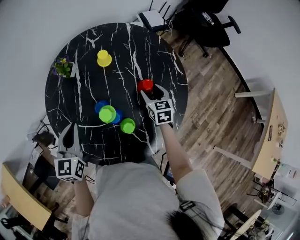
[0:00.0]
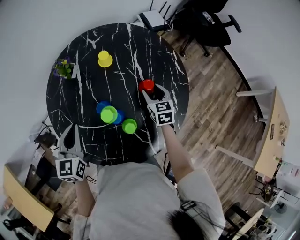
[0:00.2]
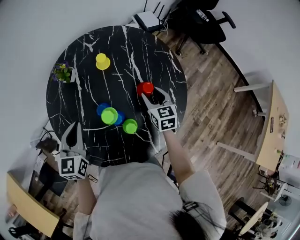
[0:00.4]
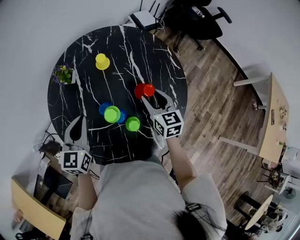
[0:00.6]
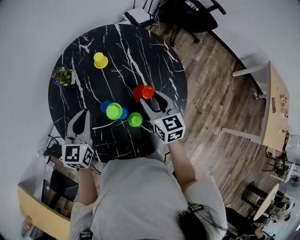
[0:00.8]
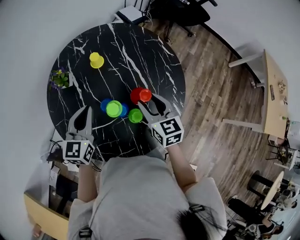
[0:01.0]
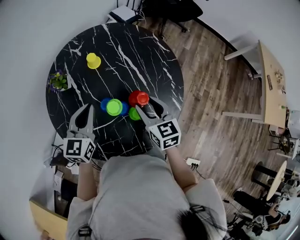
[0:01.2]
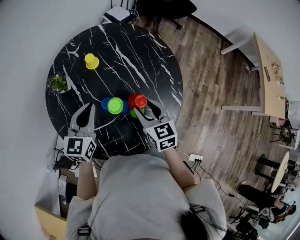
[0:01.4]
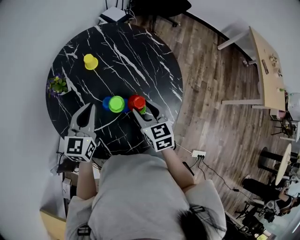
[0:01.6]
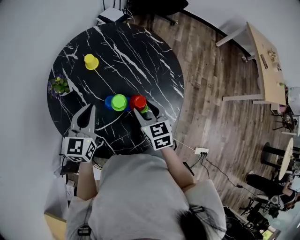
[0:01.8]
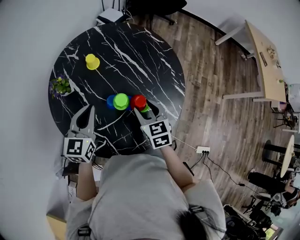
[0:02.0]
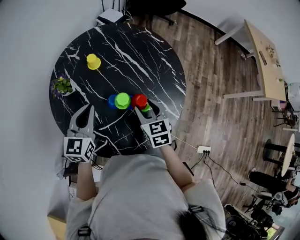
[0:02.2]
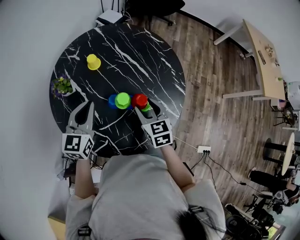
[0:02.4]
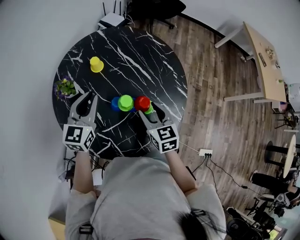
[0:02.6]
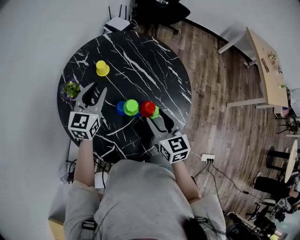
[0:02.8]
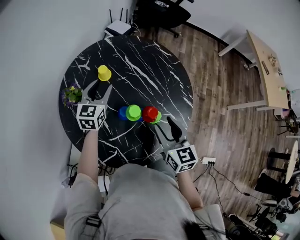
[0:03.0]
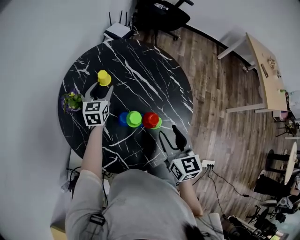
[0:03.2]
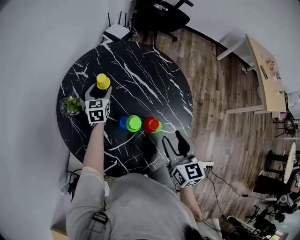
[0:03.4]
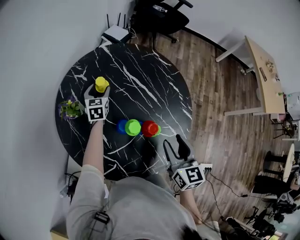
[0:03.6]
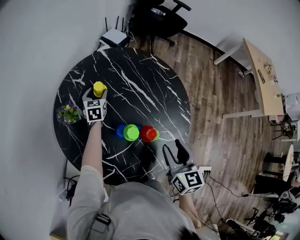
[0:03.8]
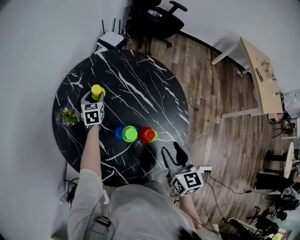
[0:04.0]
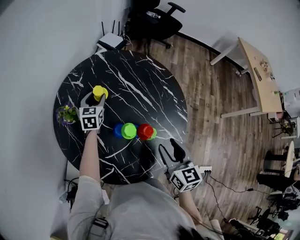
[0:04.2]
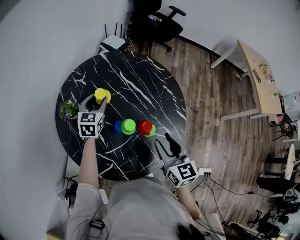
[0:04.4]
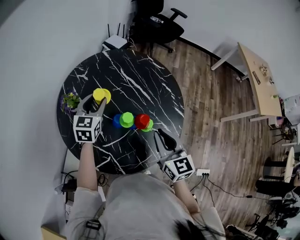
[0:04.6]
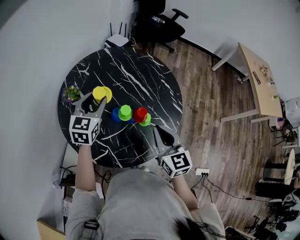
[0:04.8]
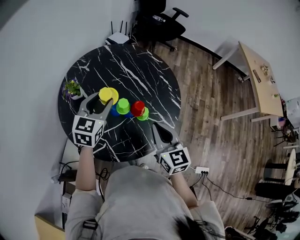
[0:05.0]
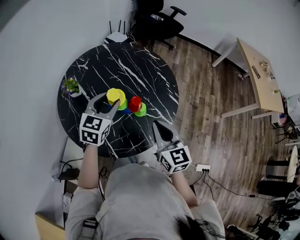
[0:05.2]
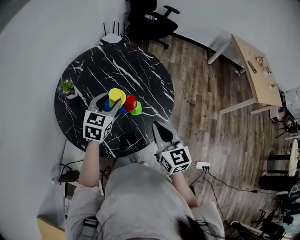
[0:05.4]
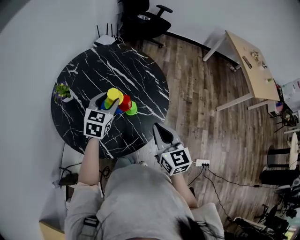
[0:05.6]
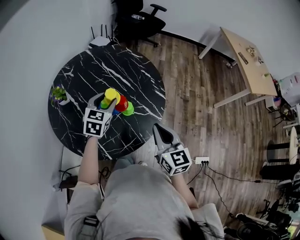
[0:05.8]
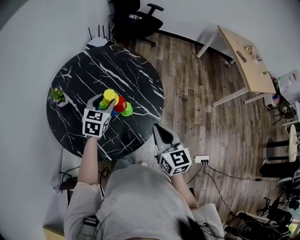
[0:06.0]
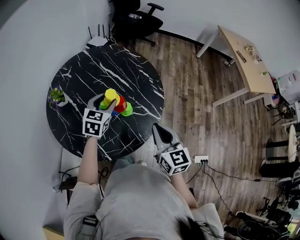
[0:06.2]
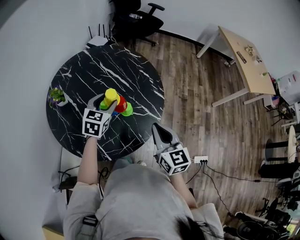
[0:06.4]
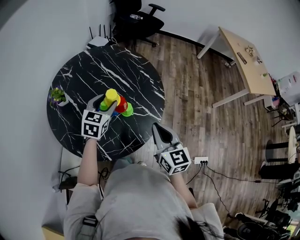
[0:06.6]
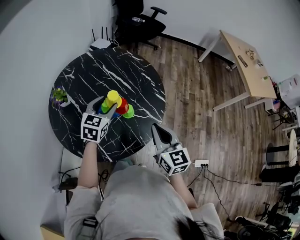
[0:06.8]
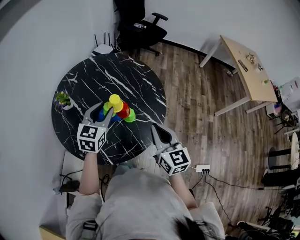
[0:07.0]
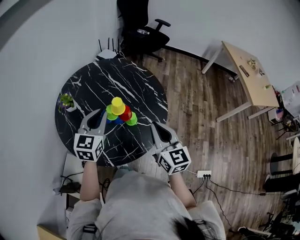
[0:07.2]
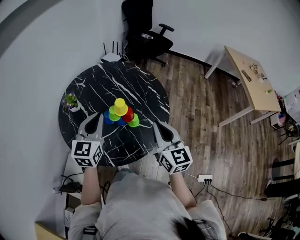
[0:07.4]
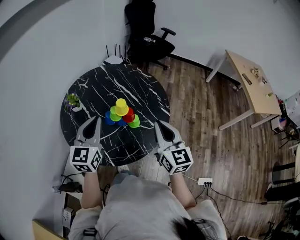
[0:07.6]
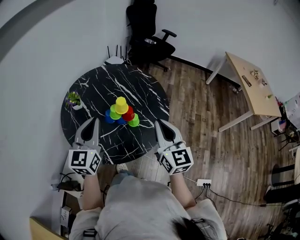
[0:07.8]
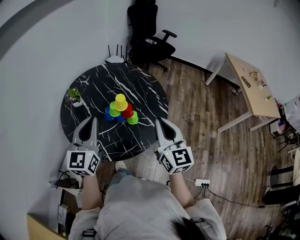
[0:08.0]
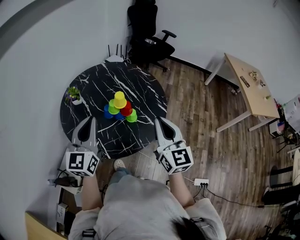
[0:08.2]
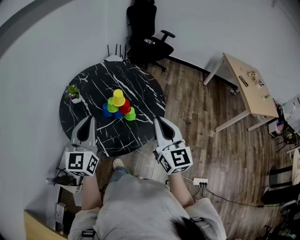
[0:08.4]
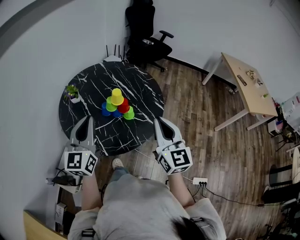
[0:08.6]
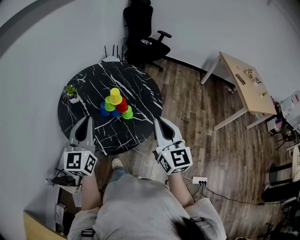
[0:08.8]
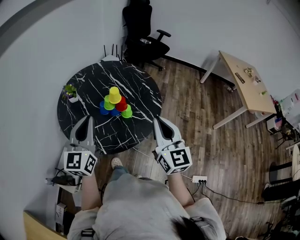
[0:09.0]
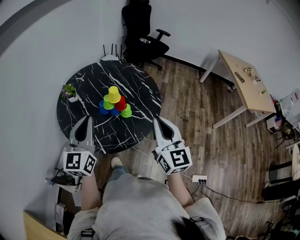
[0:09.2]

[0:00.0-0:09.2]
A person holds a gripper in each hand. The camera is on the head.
0:00.0 to 0:01.6: The right gripper ends up roughly 20 cm from where it was, and swivels approximately 20 degrees. Meanwhile the left gripper shifts by about 10 cm, and changes its angle by about 40 degrees.
0:01.6 to 0:03.0: The right gripper heads upward, covering roughly 5 cm, while the left gripper moves forward, about 15 cm, and opens.
0:03.0 to 0:04.6: The left gripper goes downward and returns, some 15 cm each way, while the right gripper closes up.
0:04.6 to 0:06.2: Both grippers move to the right and backward, some 15 cm.
0:06.2 to 0:07.6: The left gripper shifts about 20 cm upward, backward and to the left, rotates approximately 30 degrees, and closes, while the right gripper is displaced upward by approximately 10 cm.
0:07.6 to 0:09.2: Both grippers travel together backward, approximately 10 cm.

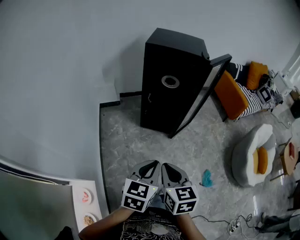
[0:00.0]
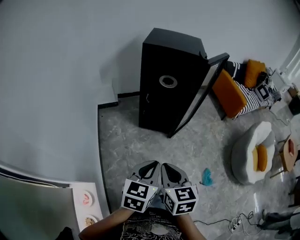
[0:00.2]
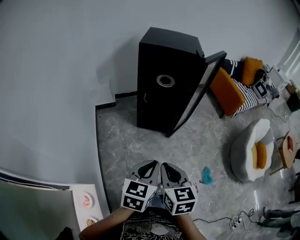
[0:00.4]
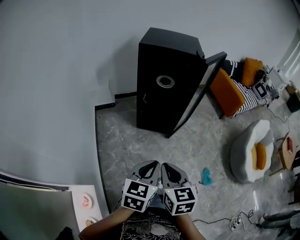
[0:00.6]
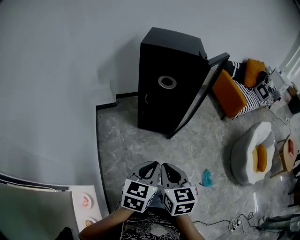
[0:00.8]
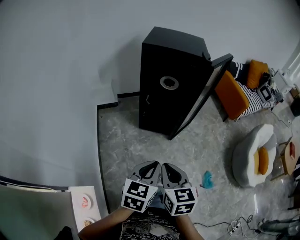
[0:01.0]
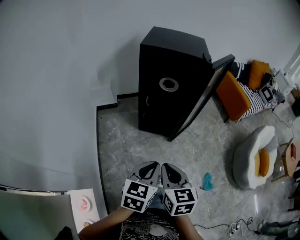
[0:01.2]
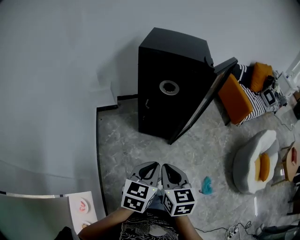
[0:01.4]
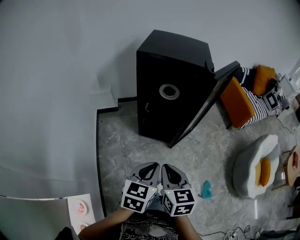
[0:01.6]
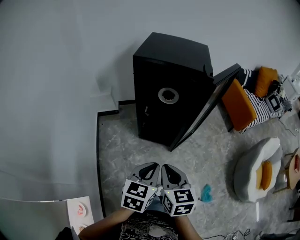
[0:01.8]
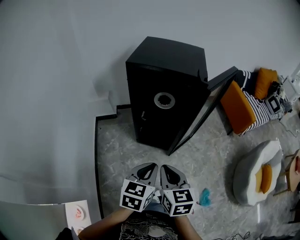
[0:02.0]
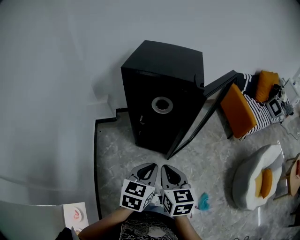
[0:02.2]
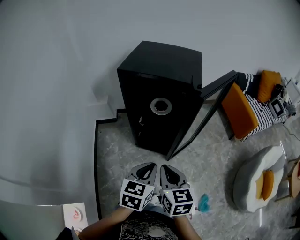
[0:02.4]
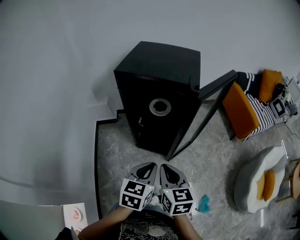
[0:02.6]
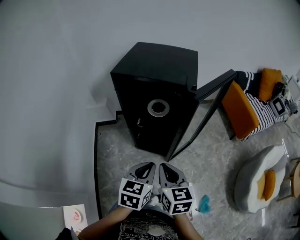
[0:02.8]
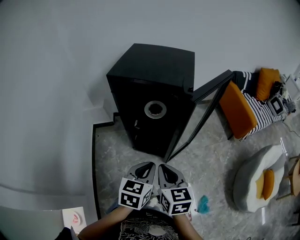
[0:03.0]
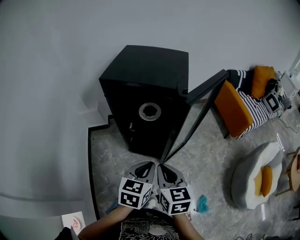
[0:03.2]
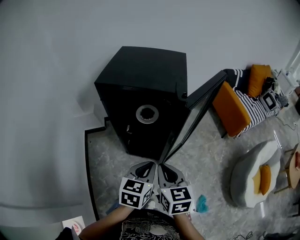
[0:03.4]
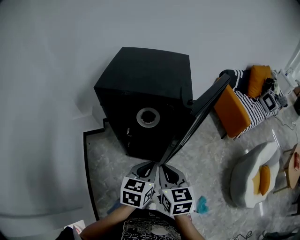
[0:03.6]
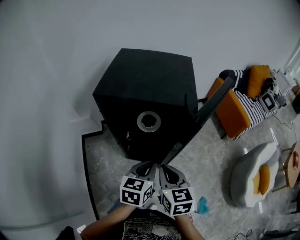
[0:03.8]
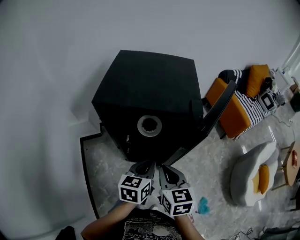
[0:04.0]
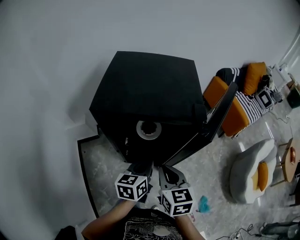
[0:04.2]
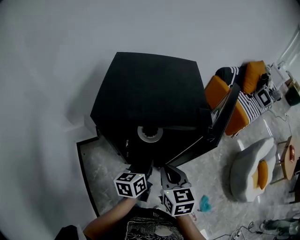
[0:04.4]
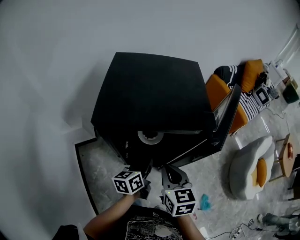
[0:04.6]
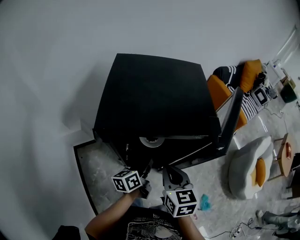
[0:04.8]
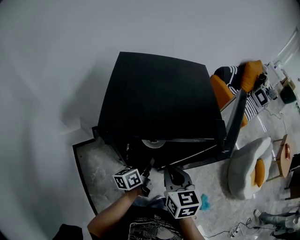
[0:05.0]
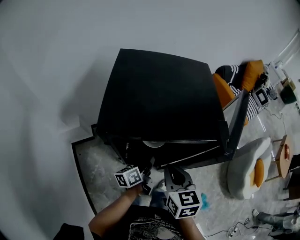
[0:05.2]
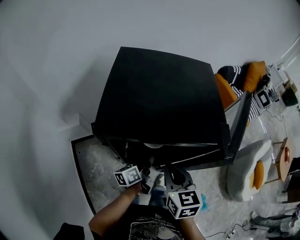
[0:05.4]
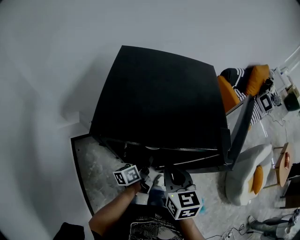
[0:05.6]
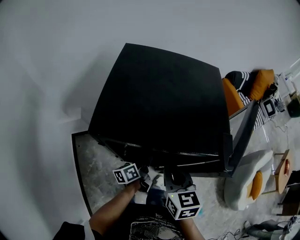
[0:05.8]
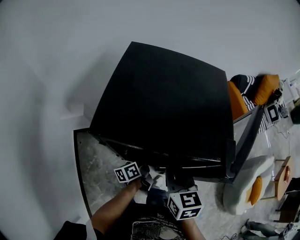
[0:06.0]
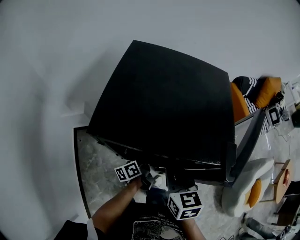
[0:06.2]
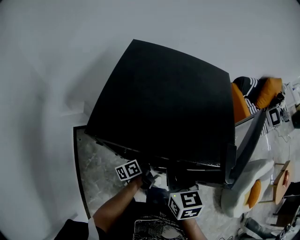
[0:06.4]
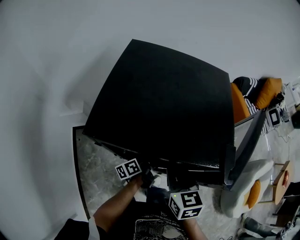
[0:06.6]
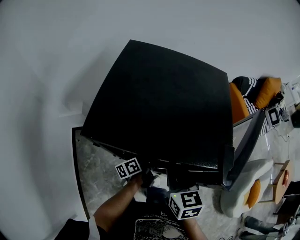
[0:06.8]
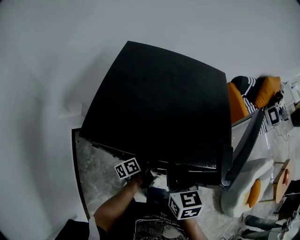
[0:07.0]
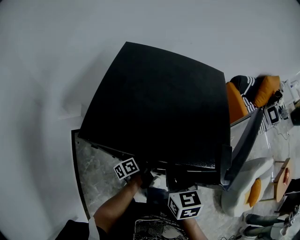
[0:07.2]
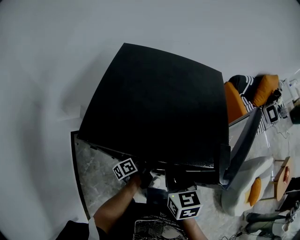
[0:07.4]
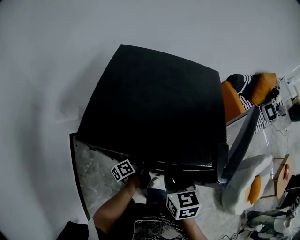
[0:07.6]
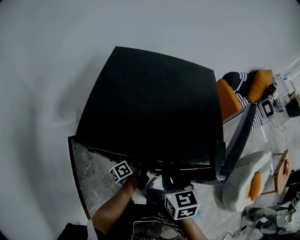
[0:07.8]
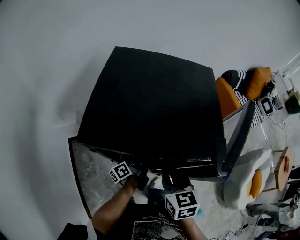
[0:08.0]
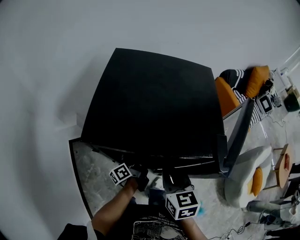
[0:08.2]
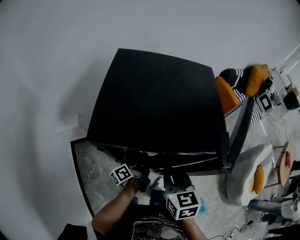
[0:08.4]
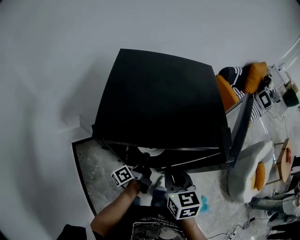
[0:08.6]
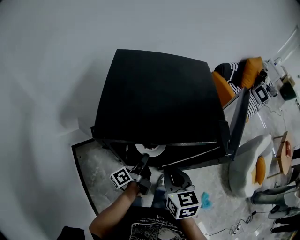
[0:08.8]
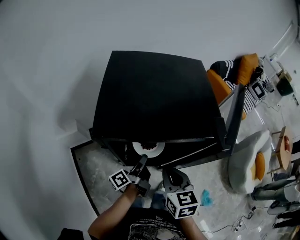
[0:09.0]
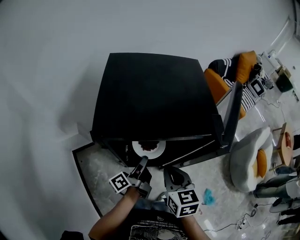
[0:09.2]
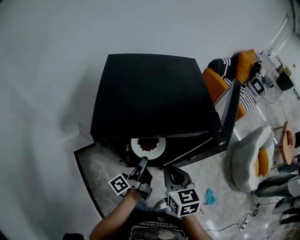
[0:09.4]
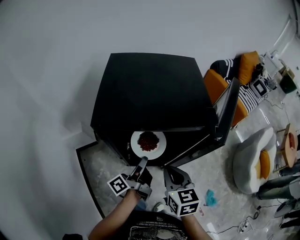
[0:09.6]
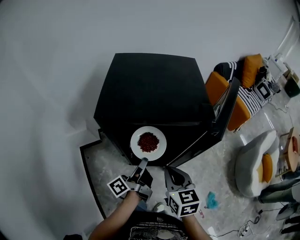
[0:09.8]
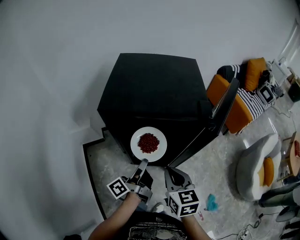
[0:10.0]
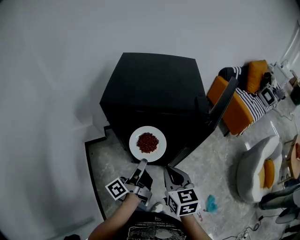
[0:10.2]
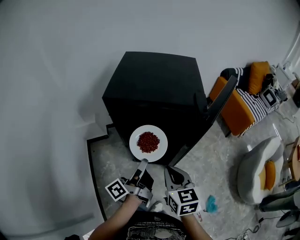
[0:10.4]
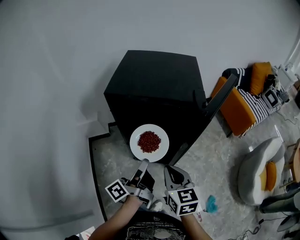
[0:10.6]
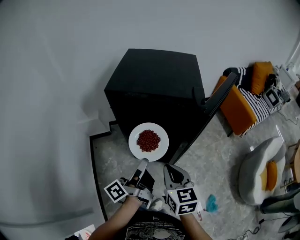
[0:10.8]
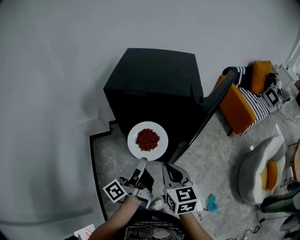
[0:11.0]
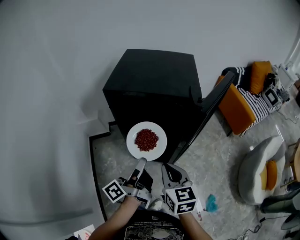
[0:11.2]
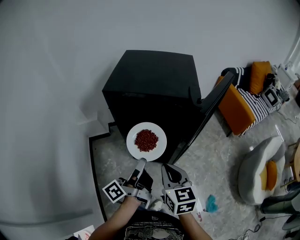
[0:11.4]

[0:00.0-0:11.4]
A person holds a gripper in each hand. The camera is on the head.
0:00.0 to 0:01.4: The grippers both shift forward by about 10 cm.
0:01.4 to 0:02.8: The grippers both shift forward and to the right by approximately 20 cm.
0:02.8 to 0:04.2: Both grippers move forward, approximately 20 cm.
0:04.2 to 0:05.6: The right gripper travels forward by roughly 10 cm; the left gripper heads downward and forward, covering about 15 cm, and rotates roughly 40 degrees.
0:05.6 to 0:07.2: The right gripper changes place by about 5 cm; the left gripper moves downward, about 5 cm, and rotates approximately 20 degrees.
0:07.2 to 0:08.6: The right gripper ends up some 5 cm from where it was; the left gripper is displaced upward by approximately 5 cm.
0:08.6 to 0:10.0: The right gripper is displaced backward by some 10 cm; the left gripper shifts some 20 cm backward and upward.
0:10.0 to 0:11.4: The right gripper heads backward, covering approximately 10 cm. The left gripper moves backward and upward, approximately 15 cm.

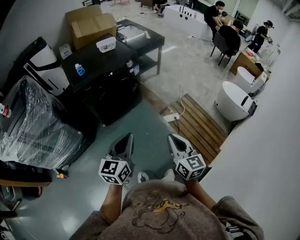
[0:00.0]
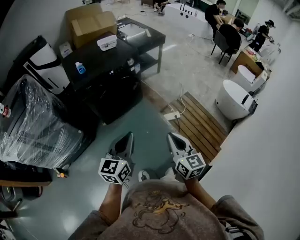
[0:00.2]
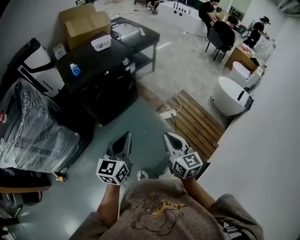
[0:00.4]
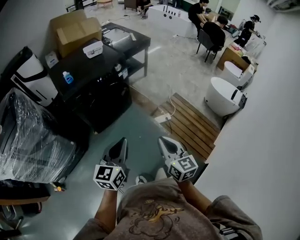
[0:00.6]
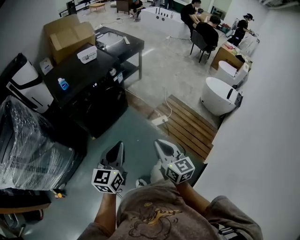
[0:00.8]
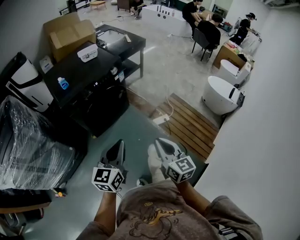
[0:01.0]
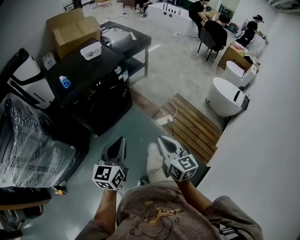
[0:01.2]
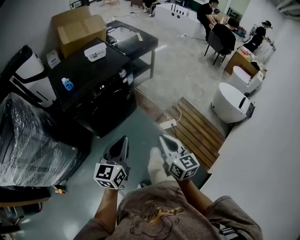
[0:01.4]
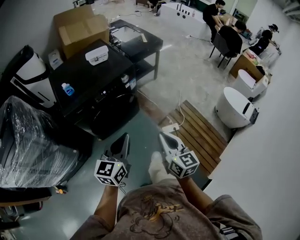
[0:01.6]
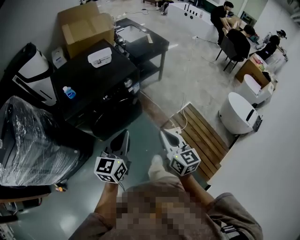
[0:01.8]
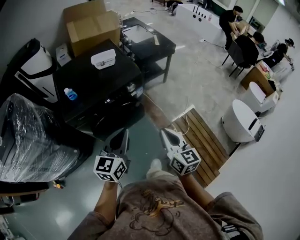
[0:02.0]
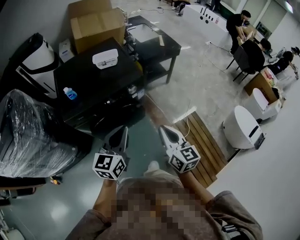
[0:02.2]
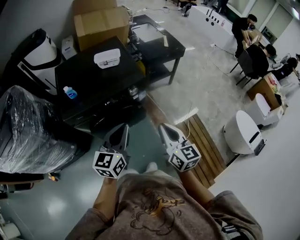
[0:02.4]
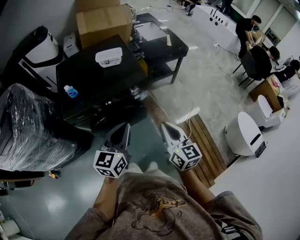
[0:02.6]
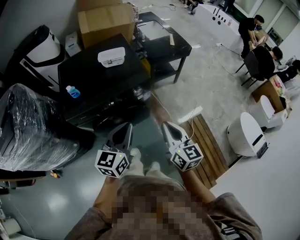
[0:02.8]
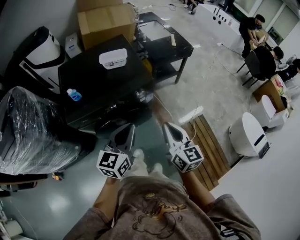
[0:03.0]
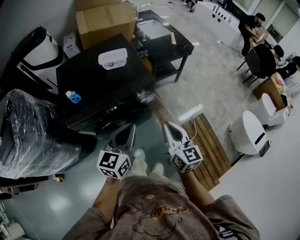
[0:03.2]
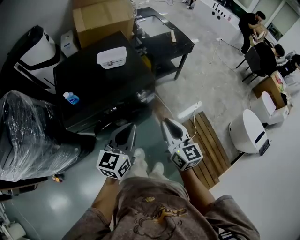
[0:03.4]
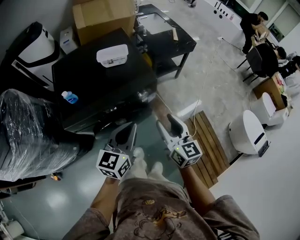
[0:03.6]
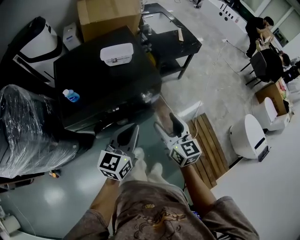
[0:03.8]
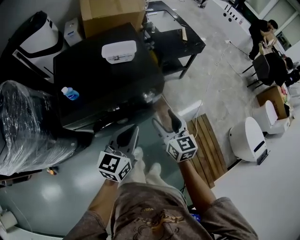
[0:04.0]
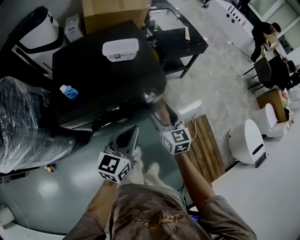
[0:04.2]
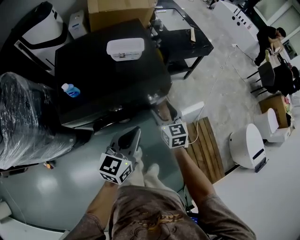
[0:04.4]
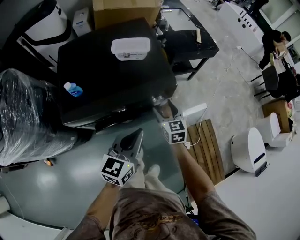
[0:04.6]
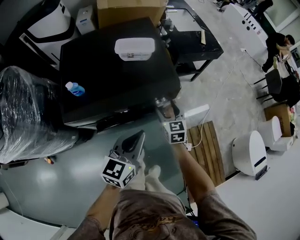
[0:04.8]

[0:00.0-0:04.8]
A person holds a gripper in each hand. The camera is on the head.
0:00.0 to 0:01.6: The two grippers go some 20 cm forward.
0:01.6 to 0:03.2: Both grippers move forward, roughly 25 cm.
0:03.2 to 0:04.8: The right gripper goes about 30 cm forward and downward, rotates roughly 30 degrees, and opens up, while the left gripper shifts roughly 10 cm downward and forward.
